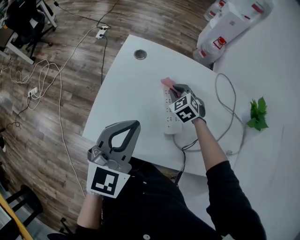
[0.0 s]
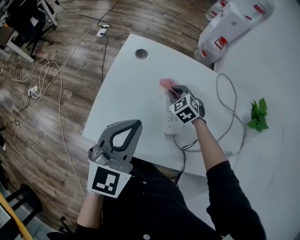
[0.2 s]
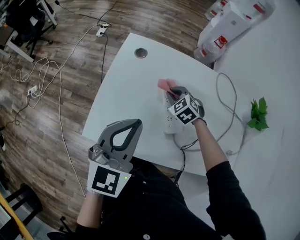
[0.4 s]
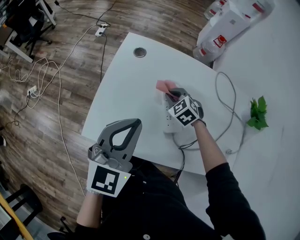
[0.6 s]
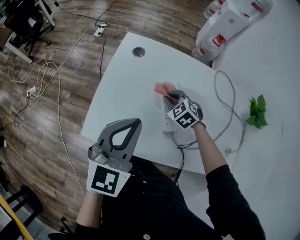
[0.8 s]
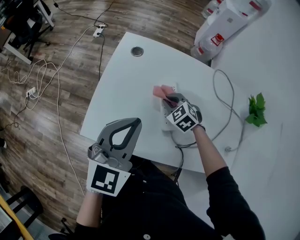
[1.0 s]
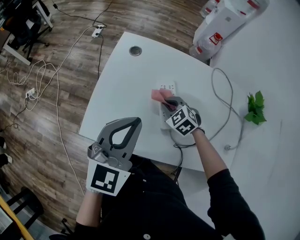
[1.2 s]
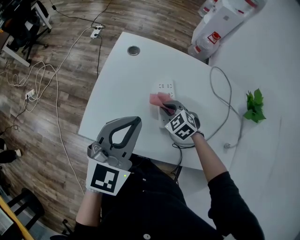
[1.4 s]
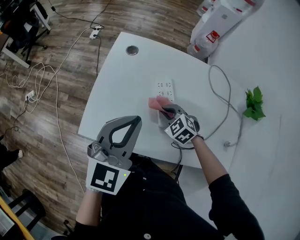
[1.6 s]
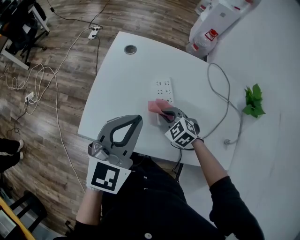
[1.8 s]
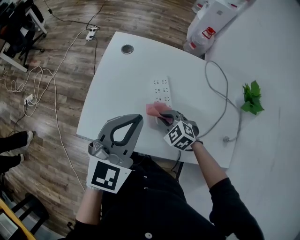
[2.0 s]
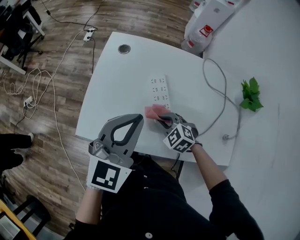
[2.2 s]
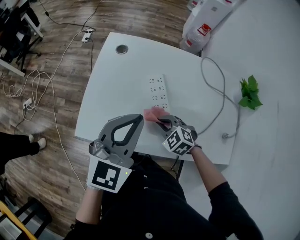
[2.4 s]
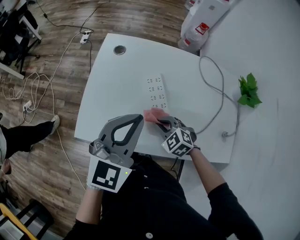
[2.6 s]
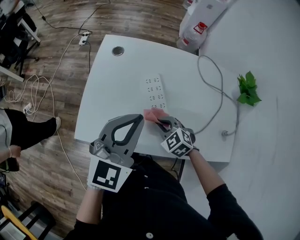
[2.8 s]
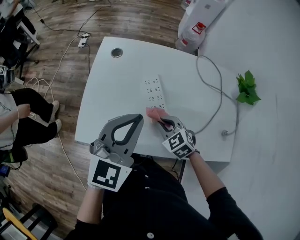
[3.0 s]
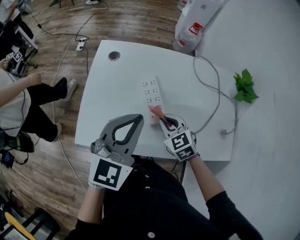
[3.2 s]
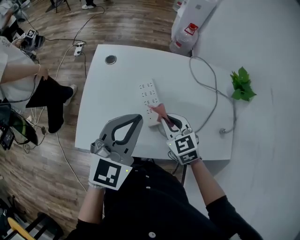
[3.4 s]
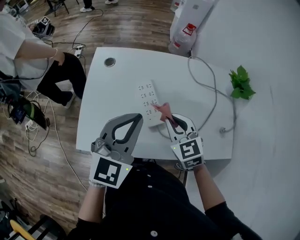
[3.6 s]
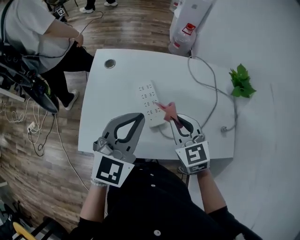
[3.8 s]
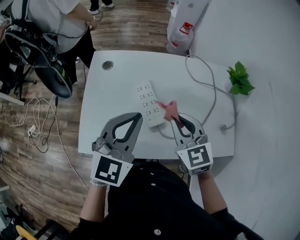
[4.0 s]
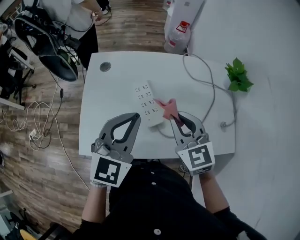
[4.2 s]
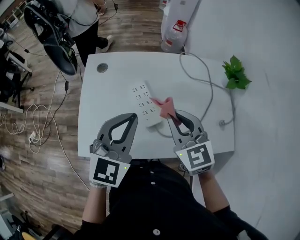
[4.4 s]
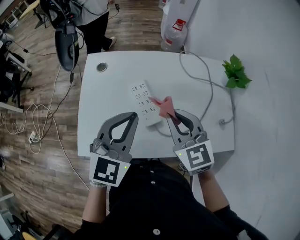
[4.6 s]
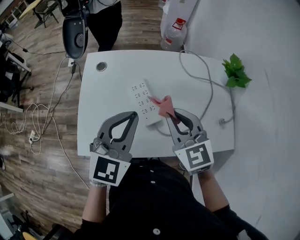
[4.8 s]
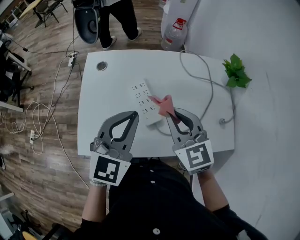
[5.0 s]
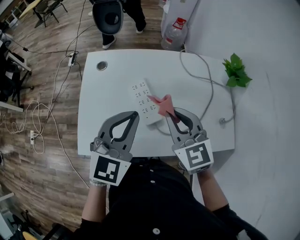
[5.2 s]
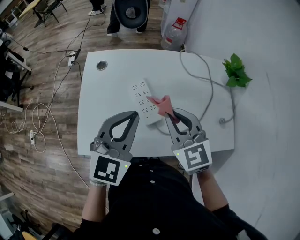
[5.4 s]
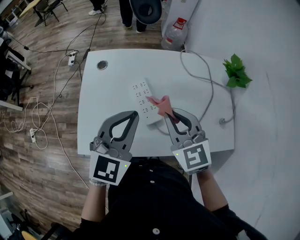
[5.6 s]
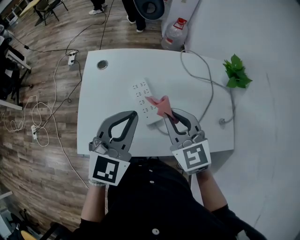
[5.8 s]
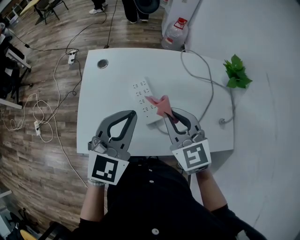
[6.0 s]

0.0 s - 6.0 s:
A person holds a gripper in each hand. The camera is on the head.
0.0 s - 1.6 s: The right gripper goes some 15 cm backward.
1.6 s - 3.0 s: The right gripper moves backward, approximately 5 cm.
3.0 s - 4.4 s: The right gripper is displaced upward by roughly 20 cm, and swivels approximately 30 degrees.
4.4 s - 6.0 s: The two grippers keep their place.

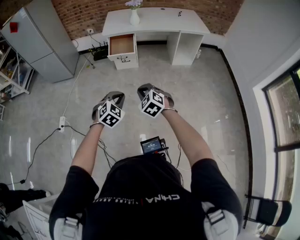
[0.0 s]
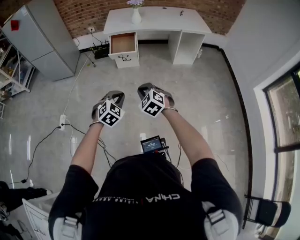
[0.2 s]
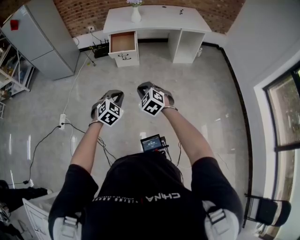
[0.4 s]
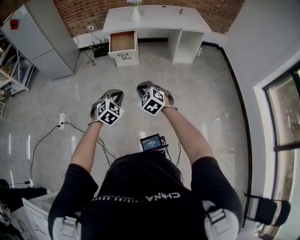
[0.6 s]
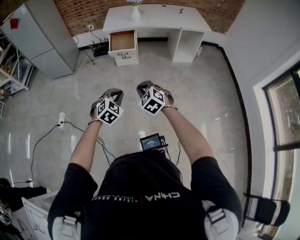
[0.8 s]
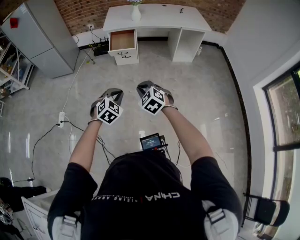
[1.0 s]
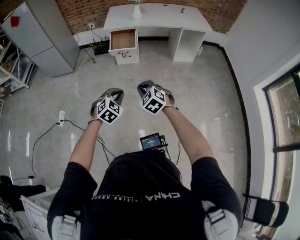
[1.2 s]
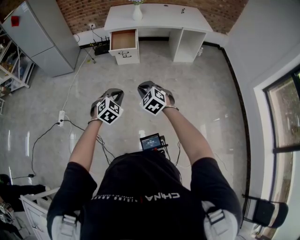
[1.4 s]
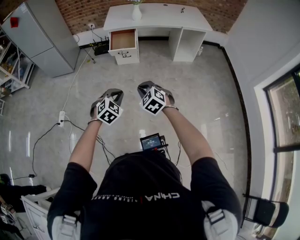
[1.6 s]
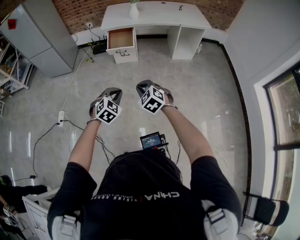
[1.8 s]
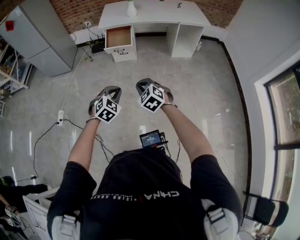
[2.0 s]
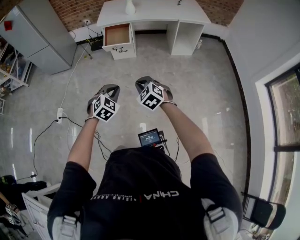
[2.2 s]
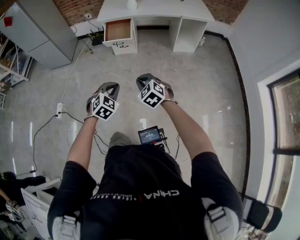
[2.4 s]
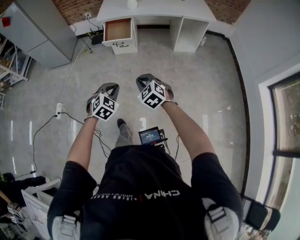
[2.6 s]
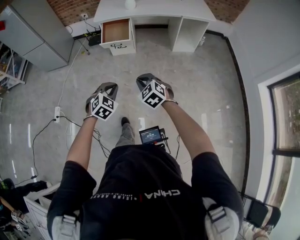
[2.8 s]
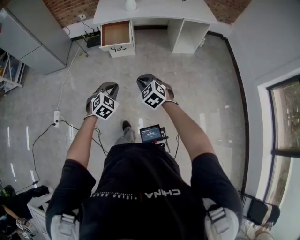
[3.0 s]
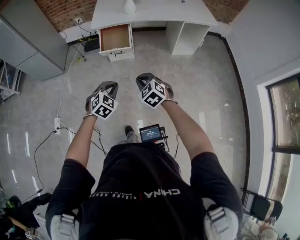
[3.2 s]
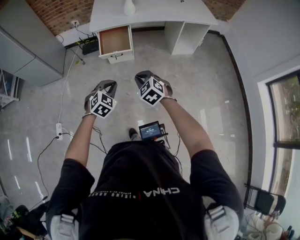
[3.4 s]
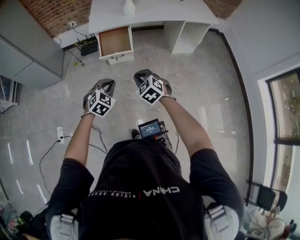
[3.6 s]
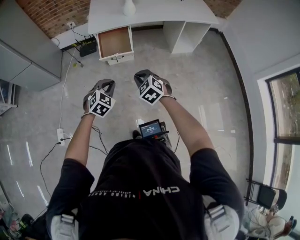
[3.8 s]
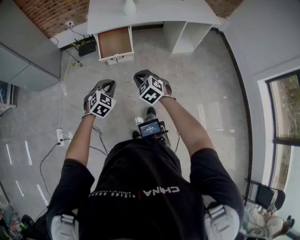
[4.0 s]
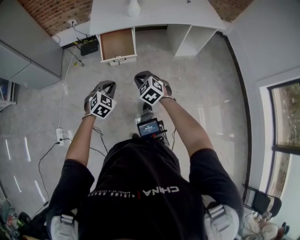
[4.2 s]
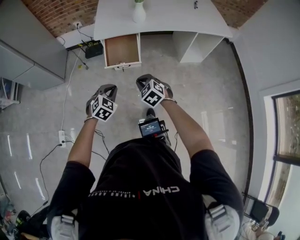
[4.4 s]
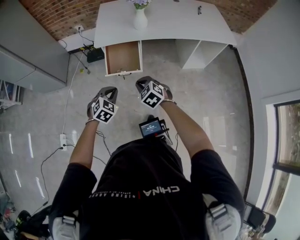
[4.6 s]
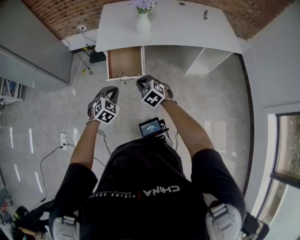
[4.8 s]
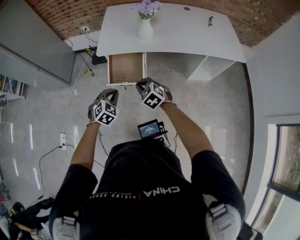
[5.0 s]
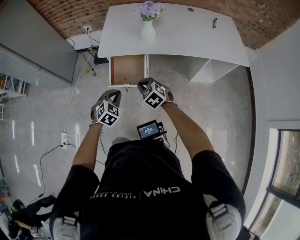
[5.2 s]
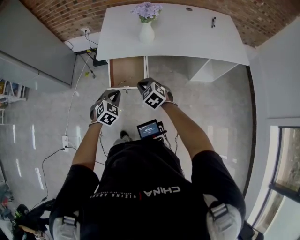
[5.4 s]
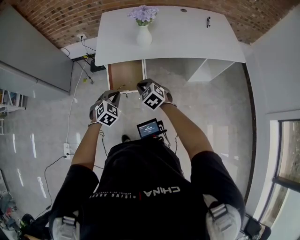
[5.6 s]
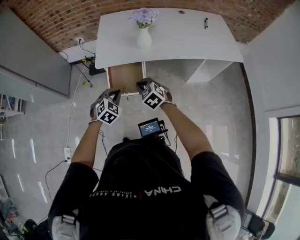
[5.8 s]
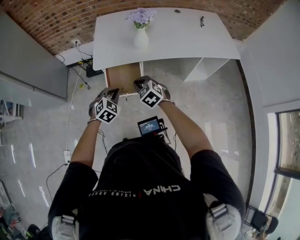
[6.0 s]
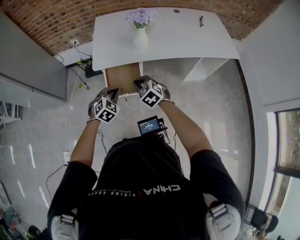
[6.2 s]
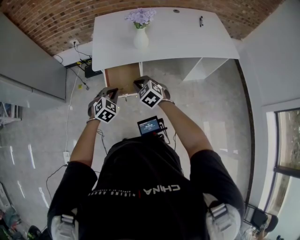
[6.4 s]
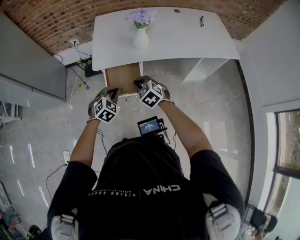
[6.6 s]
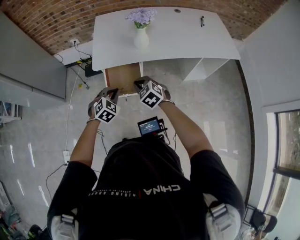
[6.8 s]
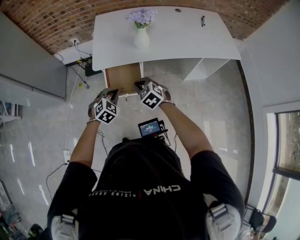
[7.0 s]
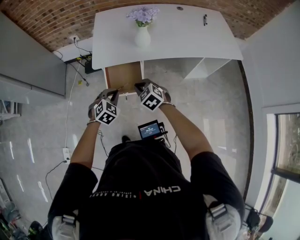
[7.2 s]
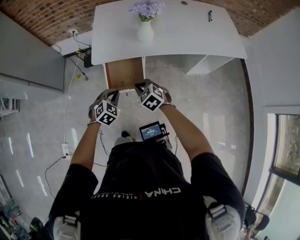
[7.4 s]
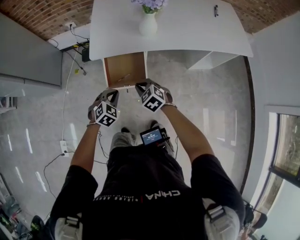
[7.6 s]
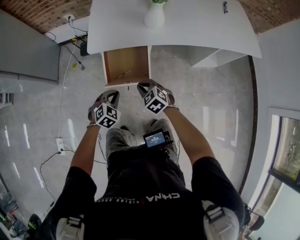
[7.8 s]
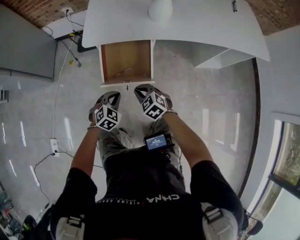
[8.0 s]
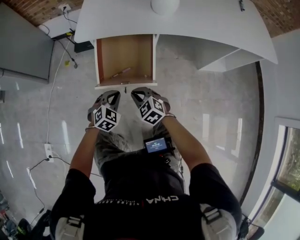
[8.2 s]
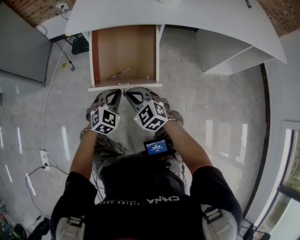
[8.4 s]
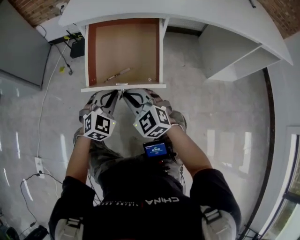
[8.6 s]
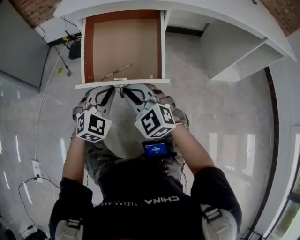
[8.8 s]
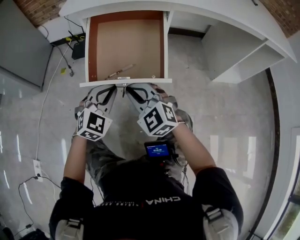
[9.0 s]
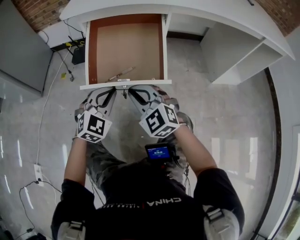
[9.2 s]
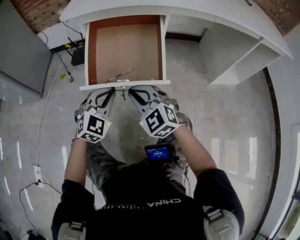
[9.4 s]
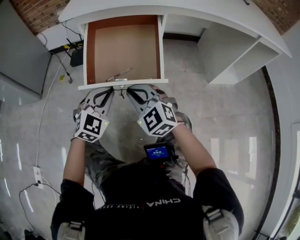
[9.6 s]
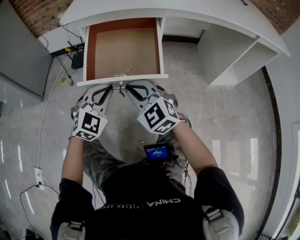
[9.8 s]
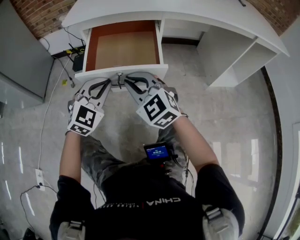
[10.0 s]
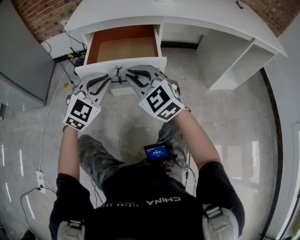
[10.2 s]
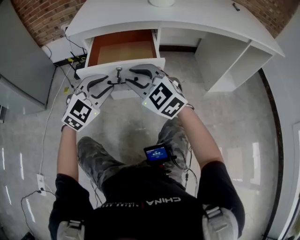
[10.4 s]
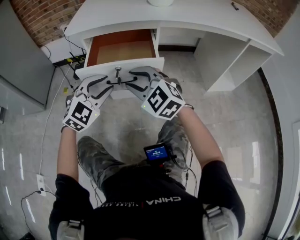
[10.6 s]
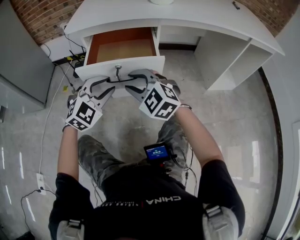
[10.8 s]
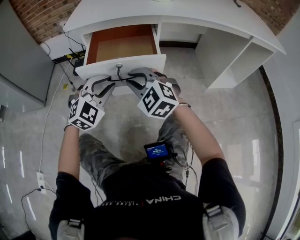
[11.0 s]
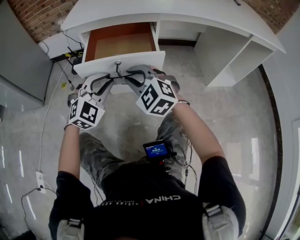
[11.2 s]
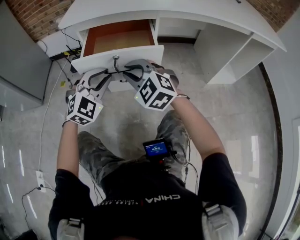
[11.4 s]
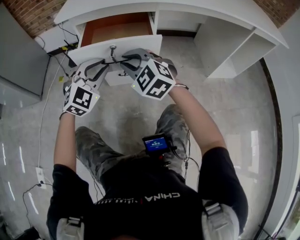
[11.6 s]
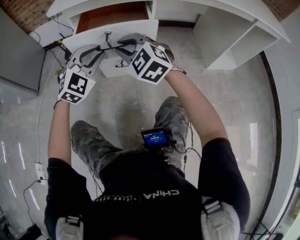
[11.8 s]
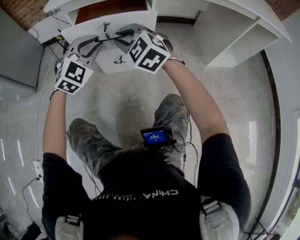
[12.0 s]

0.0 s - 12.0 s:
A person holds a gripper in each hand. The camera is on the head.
0.0 s - 1.6 s: The grippers stay close to where they were, moving slightly.
1.6 s - 3.0 s: Both grippers travel together forward, approximately 15 cm.
3.0 s - 4.4 s: Both grippers move forward, some 30 cm.
4.4 s - 6.0 s: The grippers both shift forward by roughly 25 cm.
6.0 s - 7.6 s: Both grippers travel together downward, about 10 cm.
7.6 s - 9.0 s: Both grippers travel together downward, some 35 cm. The right gripper rotates about 30 degrees, while the left gripper changes its angle by roughly 20 degrees.
9.0 s - 10.4 s: Both grippers travel together upward, approximately 10 cm. The left gripper opens, while the right gripper opens.
10.4 s - 12.0 s: Both grippers move forward, approximately 10 cm.

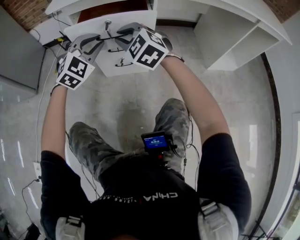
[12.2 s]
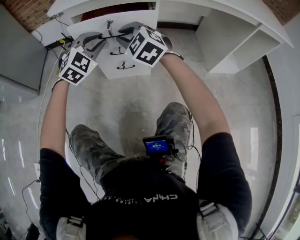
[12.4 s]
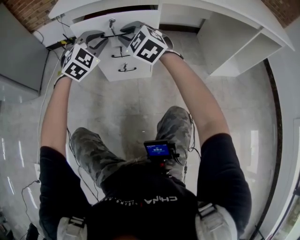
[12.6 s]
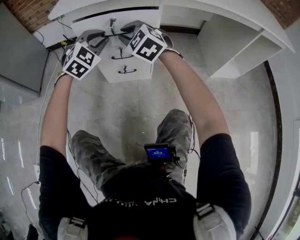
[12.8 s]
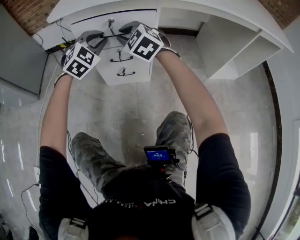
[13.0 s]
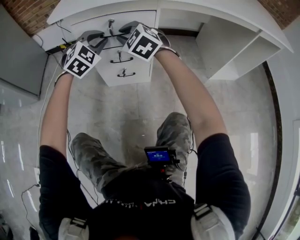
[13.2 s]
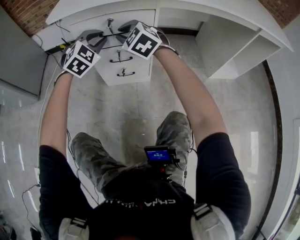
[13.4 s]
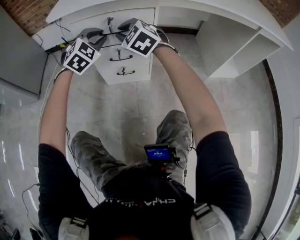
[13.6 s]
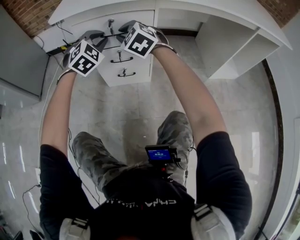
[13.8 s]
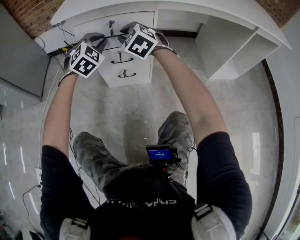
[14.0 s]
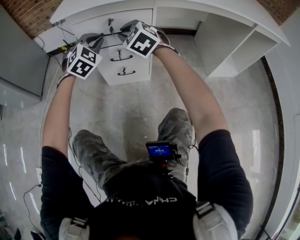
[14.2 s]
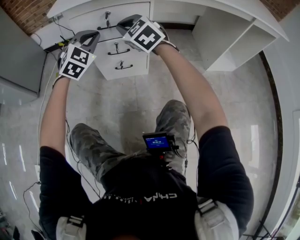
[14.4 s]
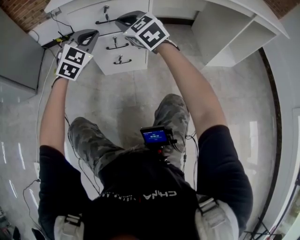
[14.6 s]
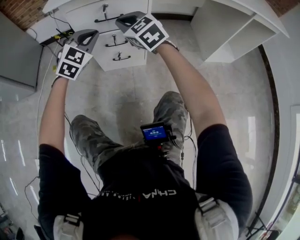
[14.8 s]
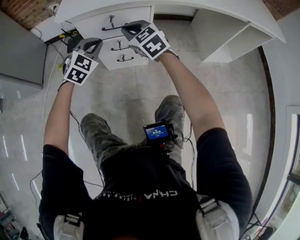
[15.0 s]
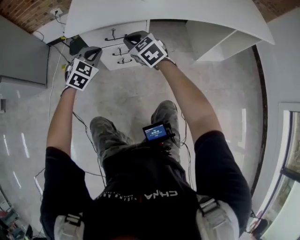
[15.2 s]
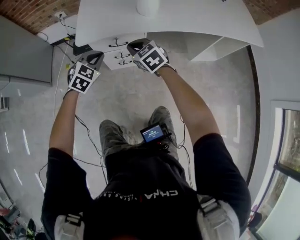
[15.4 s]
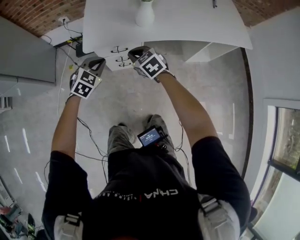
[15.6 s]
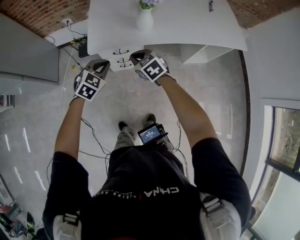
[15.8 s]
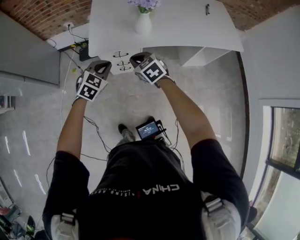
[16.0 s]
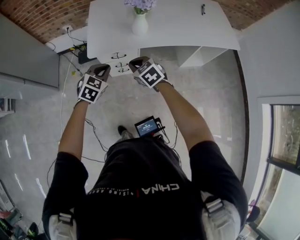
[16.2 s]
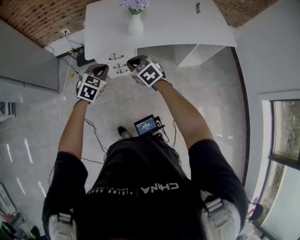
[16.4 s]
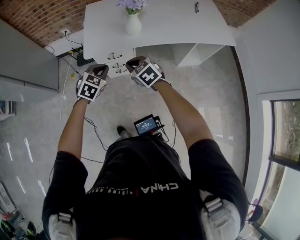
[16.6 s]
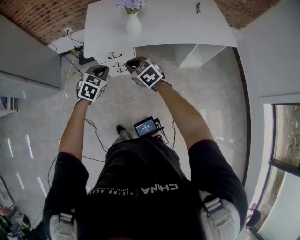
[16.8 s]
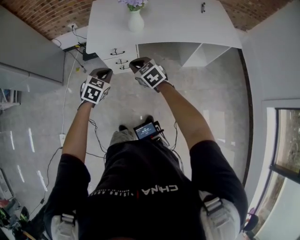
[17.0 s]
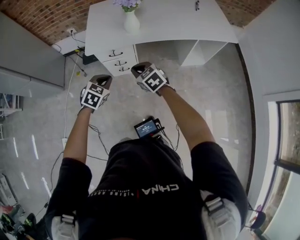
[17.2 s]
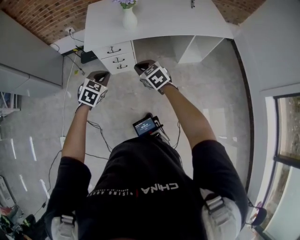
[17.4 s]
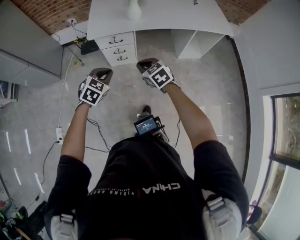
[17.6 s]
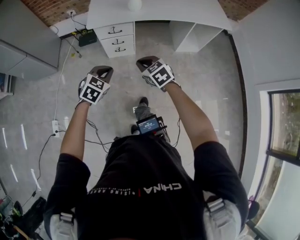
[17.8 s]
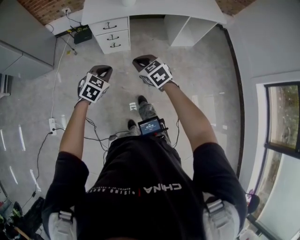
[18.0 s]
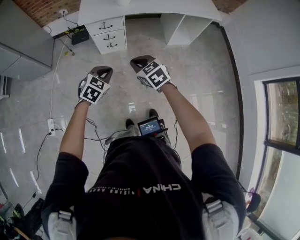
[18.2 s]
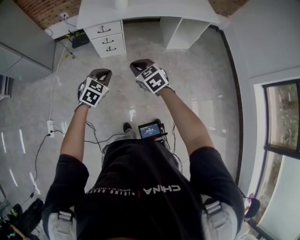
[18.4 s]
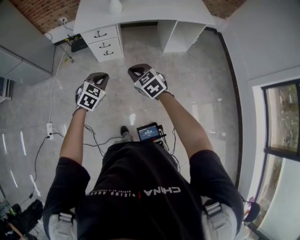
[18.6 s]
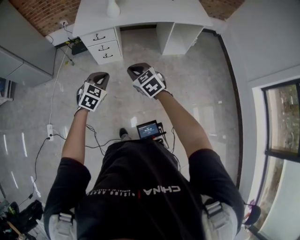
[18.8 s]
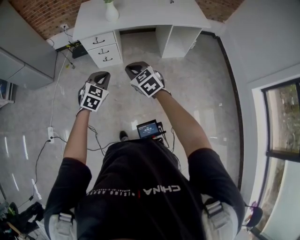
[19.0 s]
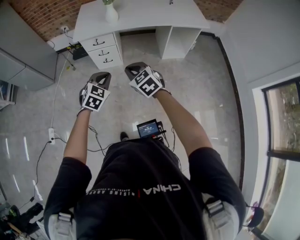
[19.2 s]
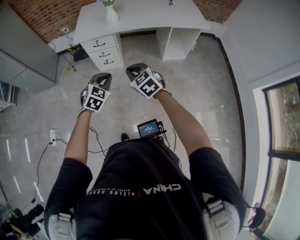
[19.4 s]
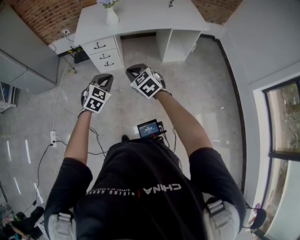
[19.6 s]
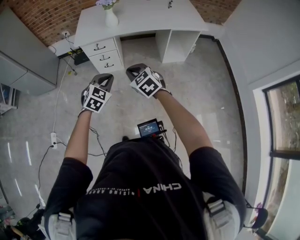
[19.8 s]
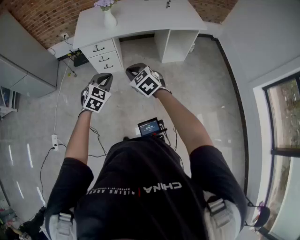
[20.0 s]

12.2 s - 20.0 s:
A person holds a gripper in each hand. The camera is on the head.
12.2 s - 13.8 s: Both grippers move forward, roughly 10 cm.
13.8 s - 15.4 s: The grippers both shift upward and backward by roughly 25 cm. The right gripper swivels about 30 degrees. The left gripper rotates roughly 20 degrees.
15.4 s - 16.8 s: The two grippers go some 25 cm upward and backward.
16.8 s - 18.4 s: The grippers both shift backward by about 35 cm.
18.4 s - 20.0 s: The left gripper goes about 10 cm to the right and upward. Meanwhile the right gripper shifts about 10 cm to the right.
